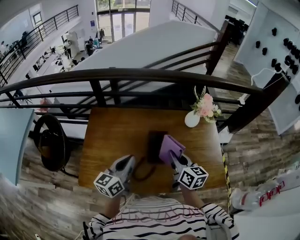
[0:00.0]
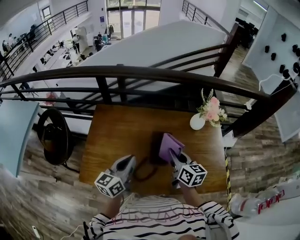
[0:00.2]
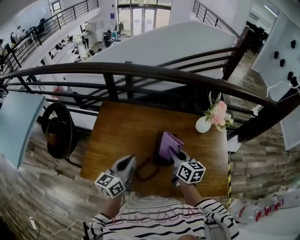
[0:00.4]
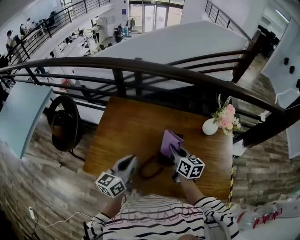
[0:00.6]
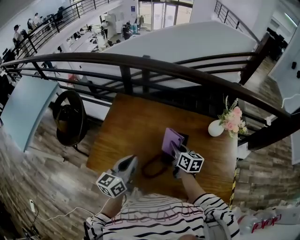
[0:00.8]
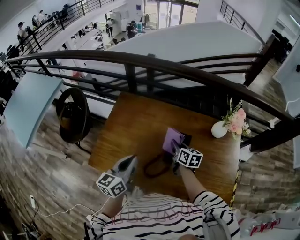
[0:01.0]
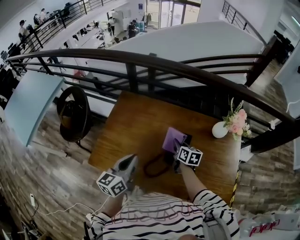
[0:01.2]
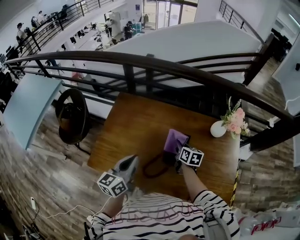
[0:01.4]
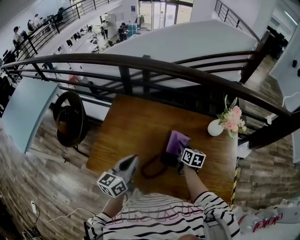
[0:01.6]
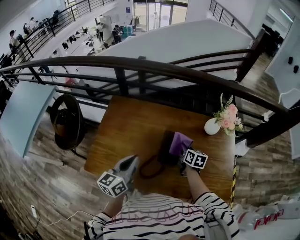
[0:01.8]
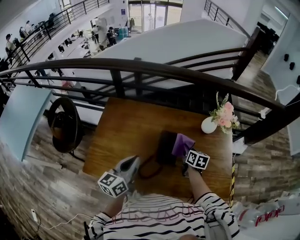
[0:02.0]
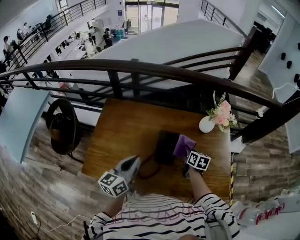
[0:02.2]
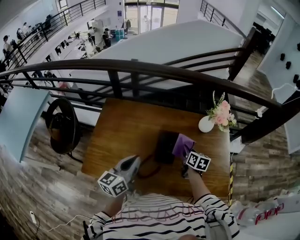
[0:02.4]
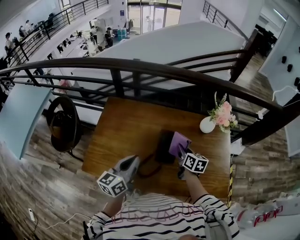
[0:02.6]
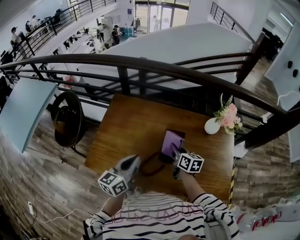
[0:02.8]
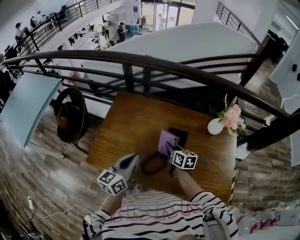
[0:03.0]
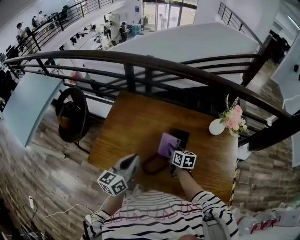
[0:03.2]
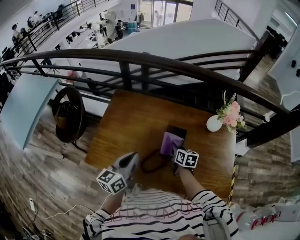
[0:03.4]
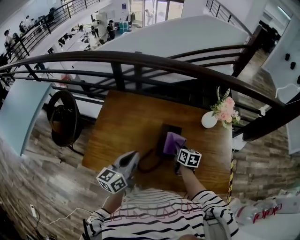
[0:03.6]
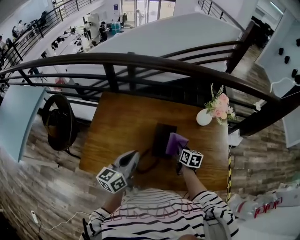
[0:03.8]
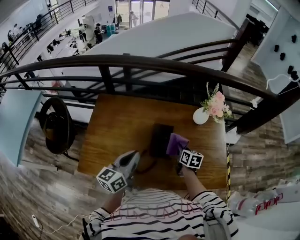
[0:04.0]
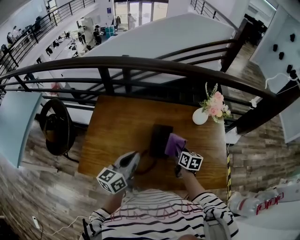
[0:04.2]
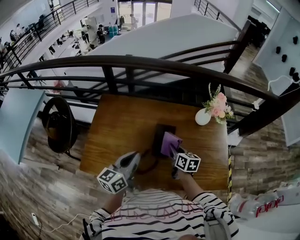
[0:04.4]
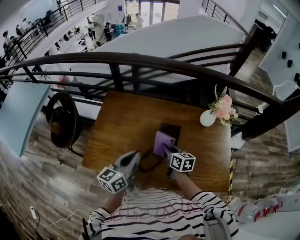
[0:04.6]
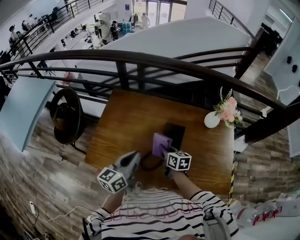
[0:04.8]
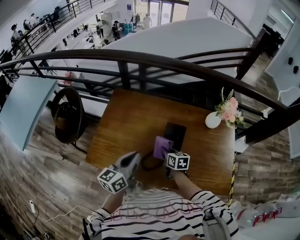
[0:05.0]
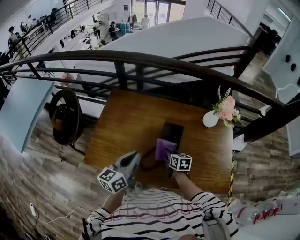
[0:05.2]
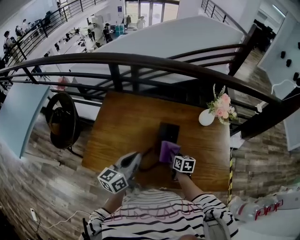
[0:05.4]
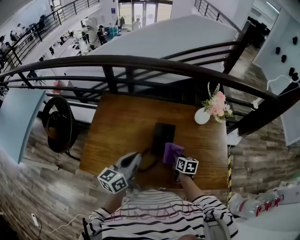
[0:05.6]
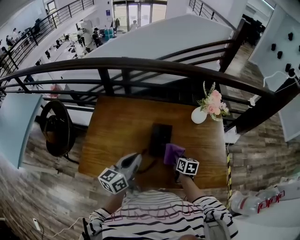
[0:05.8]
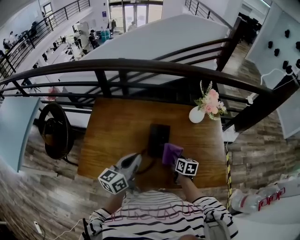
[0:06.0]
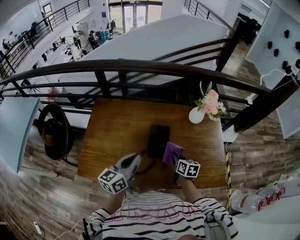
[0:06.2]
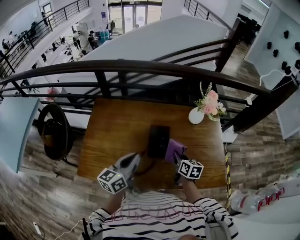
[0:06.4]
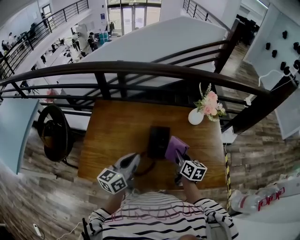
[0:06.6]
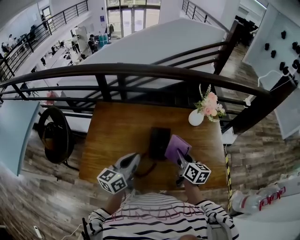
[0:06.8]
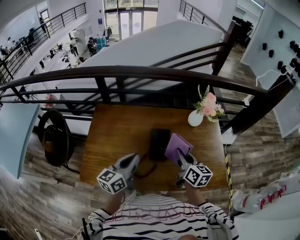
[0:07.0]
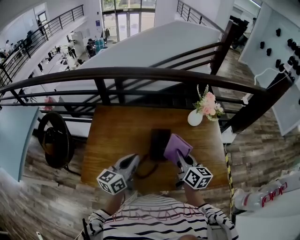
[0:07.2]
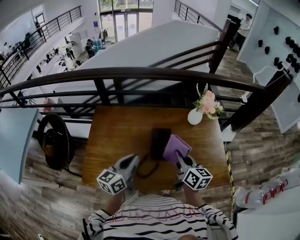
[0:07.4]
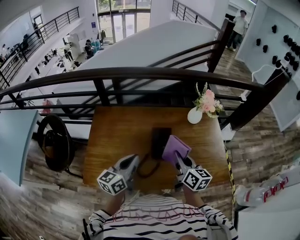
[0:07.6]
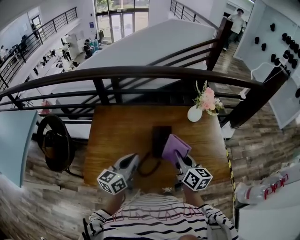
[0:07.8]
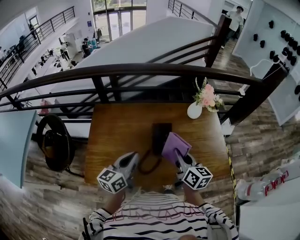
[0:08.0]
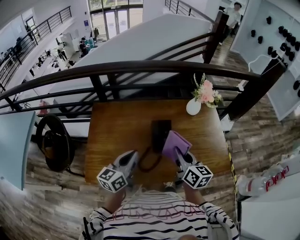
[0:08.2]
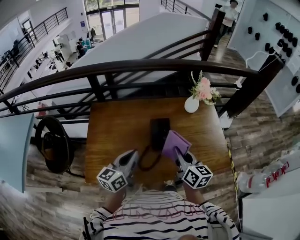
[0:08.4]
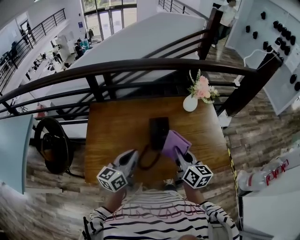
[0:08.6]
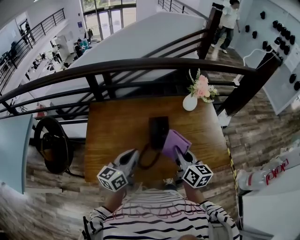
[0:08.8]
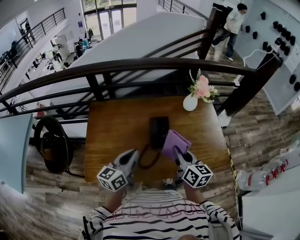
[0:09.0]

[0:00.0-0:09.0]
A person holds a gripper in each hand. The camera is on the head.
0:00.0 to 0:01.6: The right gripper heads downward and forward, covering about 20 cm, and swivels roughly 20 degrees.
0:01.6 to 0:03.0: The right gripper heads to the left and backward, covering roughly 10 cm.
0:03.0 to 0:04.4: The left gripper is displaced to the right by some 5 cm. Meanwhile the right gripper shifts some 10 cm to the right.
0:04.4 to 0:06.0: The right gripper travels downward and to the right by approximately 10 cm.
0:06.0 to 0:07.6: The left gripper moves approximately 5 cm, while the right gripper goes roughly 20 cm upward, and changes its angle by some 30 degrees.
0:07.6 to 0:09.0: The grippers move only a little.

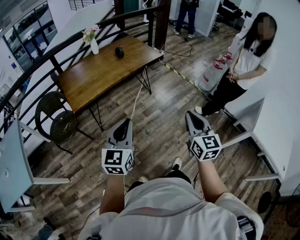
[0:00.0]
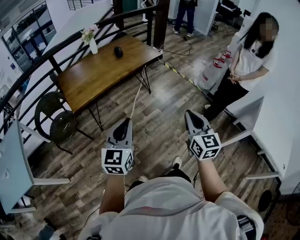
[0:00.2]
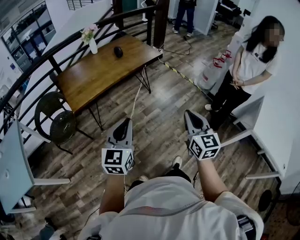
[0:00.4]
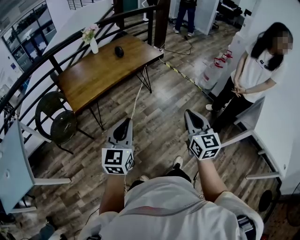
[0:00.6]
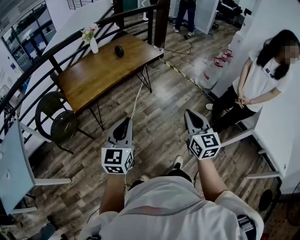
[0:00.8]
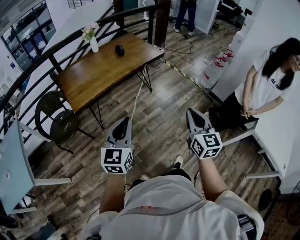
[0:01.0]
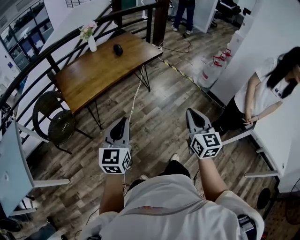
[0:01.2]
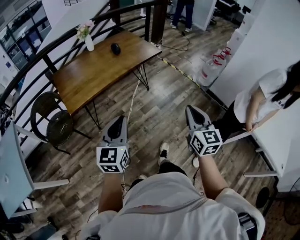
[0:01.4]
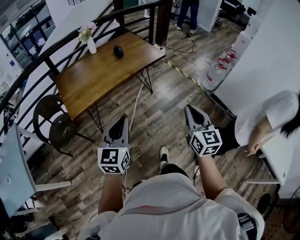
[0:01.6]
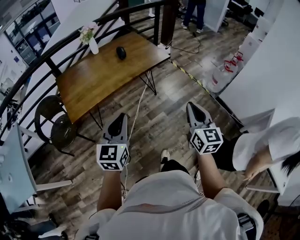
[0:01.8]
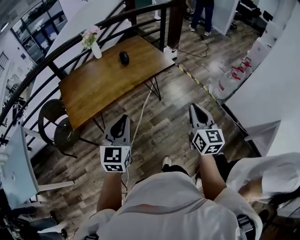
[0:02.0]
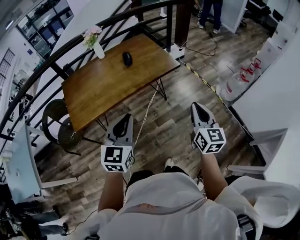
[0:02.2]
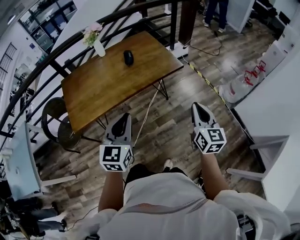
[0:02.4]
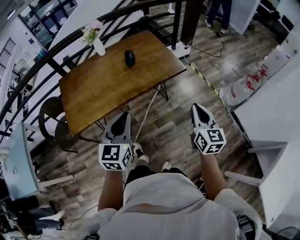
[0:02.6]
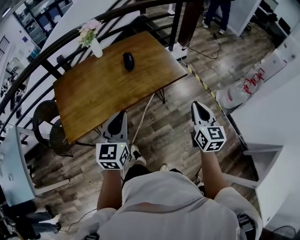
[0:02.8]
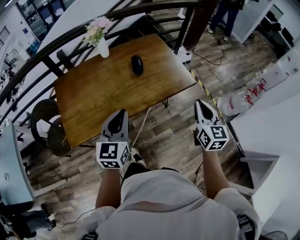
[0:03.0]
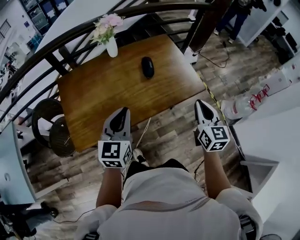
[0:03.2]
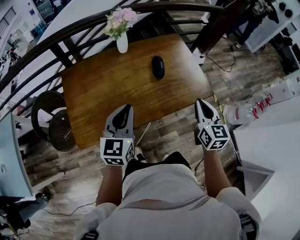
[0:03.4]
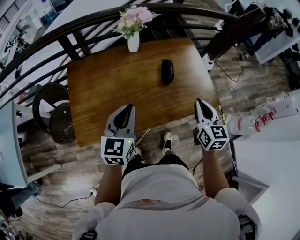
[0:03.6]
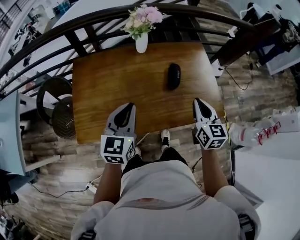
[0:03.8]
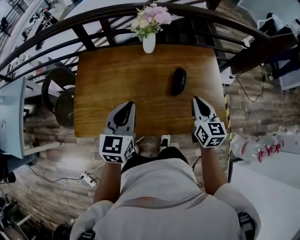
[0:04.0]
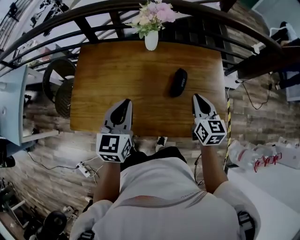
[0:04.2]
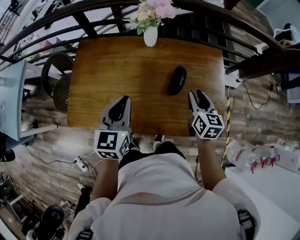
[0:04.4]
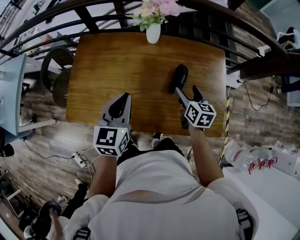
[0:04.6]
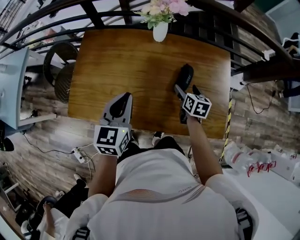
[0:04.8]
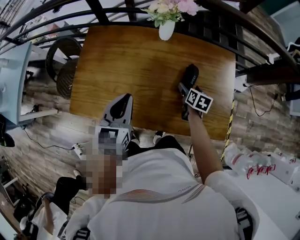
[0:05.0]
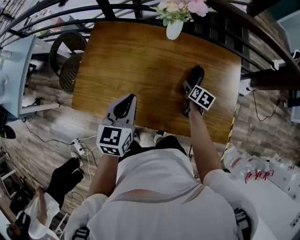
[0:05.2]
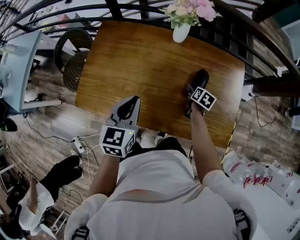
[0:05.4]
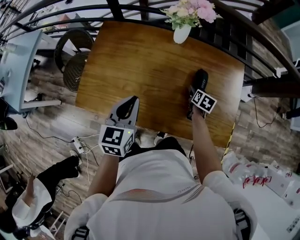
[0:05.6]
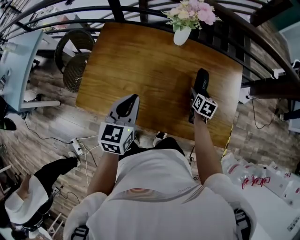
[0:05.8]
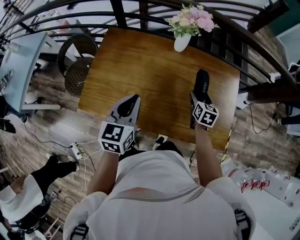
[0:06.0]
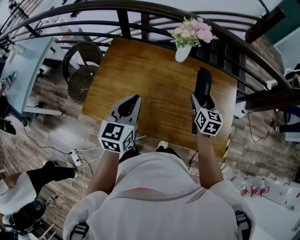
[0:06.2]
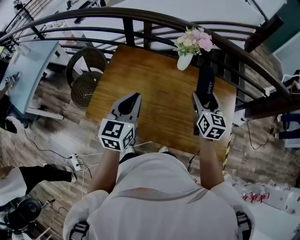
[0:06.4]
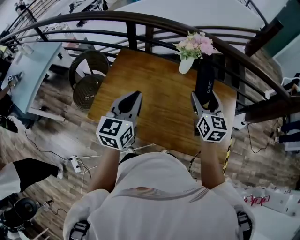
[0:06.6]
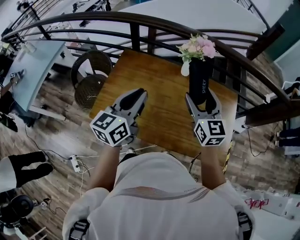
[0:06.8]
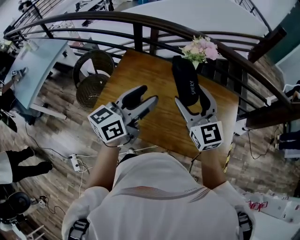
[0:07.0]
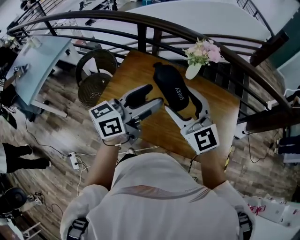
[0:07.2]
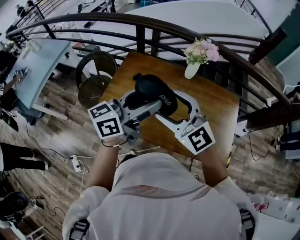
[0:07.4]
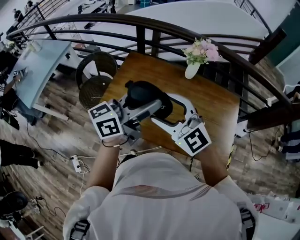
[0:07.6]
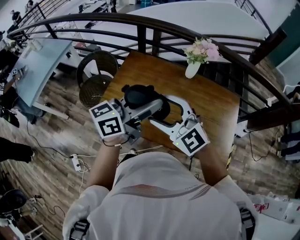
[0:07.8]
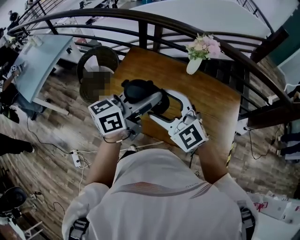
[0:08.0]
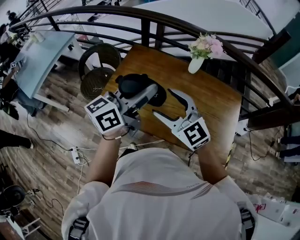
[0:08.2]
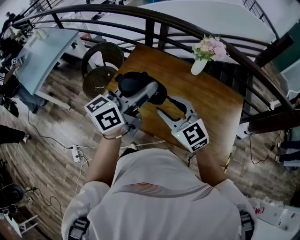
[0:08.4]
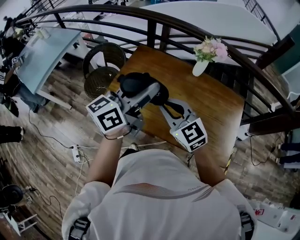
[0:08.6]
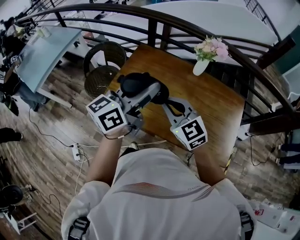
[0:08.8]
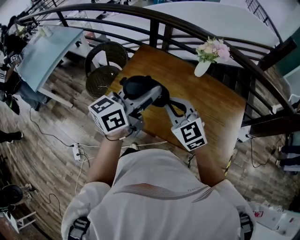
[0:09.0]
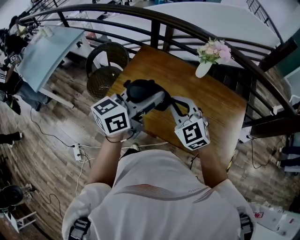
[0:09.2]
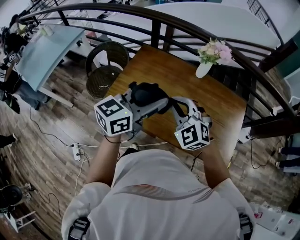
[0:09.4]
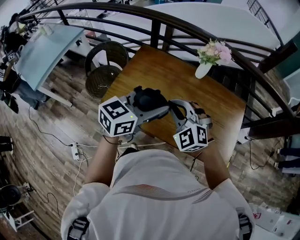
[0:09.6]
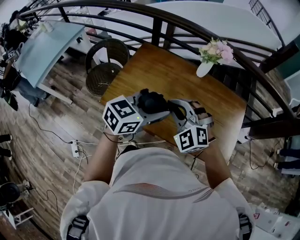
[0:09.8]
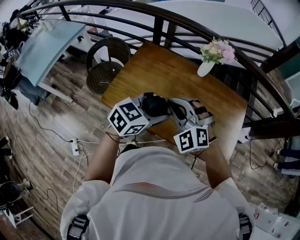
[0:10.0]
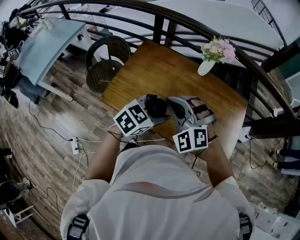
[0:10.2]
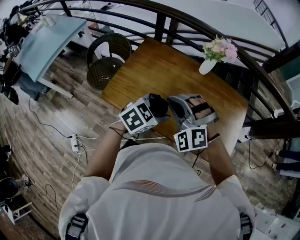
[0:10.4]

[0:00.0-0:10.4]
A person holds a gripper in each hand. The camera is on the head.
0:00.0 to 0:01.4: The two grippers go roughly 5 cm forward.
0:01.4 to 0:03.0: The two grippers travel together, forward, roughly 50 cm.
0:03.0 to 0:04.4: The right gripper changes place by some 40 cm, and rotates approximately 30 degrees. The left gripper changes place by about 25 cm, and changes its angle by approximately 30 degrees.
0:04.4 to 0:06.0: The left gripper is displaced to the left by some 5 cm. The right gripper moves downward, some 10 cm, and opens.
0:06.0 to 0:07.4: The right gripper goes roughly 40 cm upward, to the left and backward, and points its fingers roughly 30 degrees further upward. Meanwhile the left gripper heads upward, covering about 15 cm, tips its fingers upward by some 30 degrees, and opens.
0:07.4 to 0:09.0: The right gripper is displaced downward by some 5 cm, and closes its fingers.
0:09.0 to 0:10.4: The left gripper goes some 20 cm downward and to the right, and angles its fingers downward, by about 40 degrees. The right gripper rolls counterclockwise, seen from behind, by some 50 degrees.

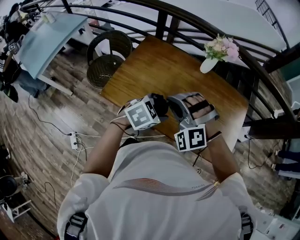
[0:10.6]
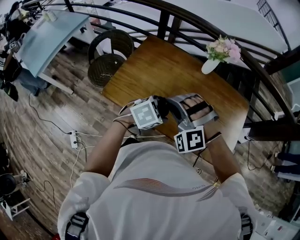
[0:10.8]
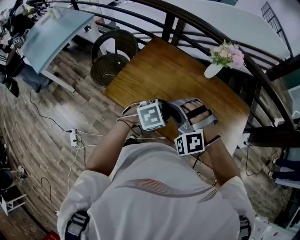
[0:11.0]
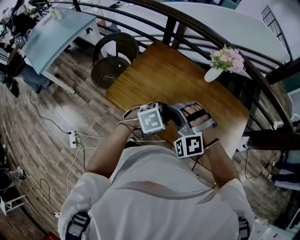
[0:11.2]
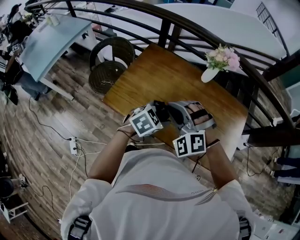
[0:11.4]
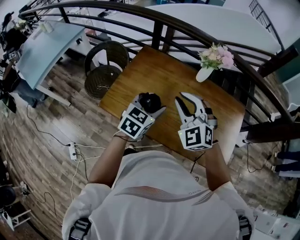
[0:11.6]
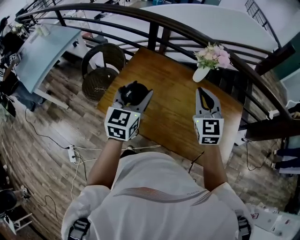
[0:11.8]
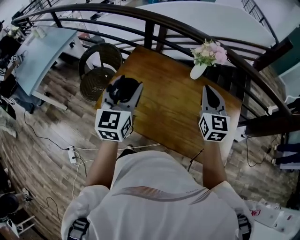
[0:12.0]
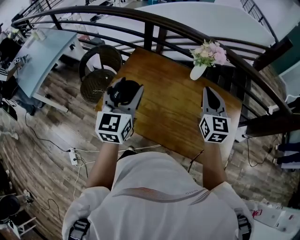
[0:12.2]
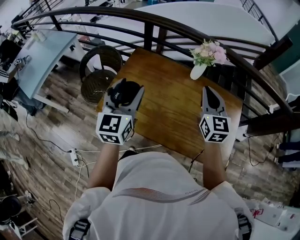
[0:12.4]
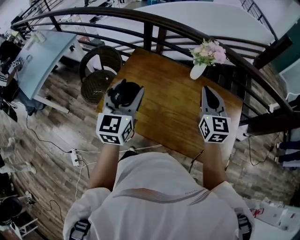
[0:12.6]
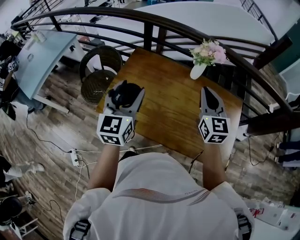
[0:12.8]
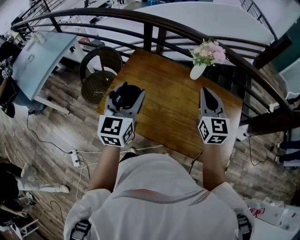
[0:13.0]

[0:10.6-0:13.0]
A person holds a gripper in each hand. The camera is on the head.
0:10.6 to 0:11.8: The left gripper moves upward, to the left and forward, approximately 20 cm, and angles its fingers upward, by some 40 degrees. The right gripper shifts about 15 cm forward, to the right and upward, and rolls clockwise, seen from behind, by some 60 degrees.
0:11.8 to 0:13.0: The grippers make only small movements.

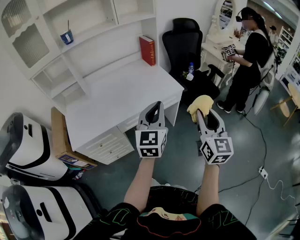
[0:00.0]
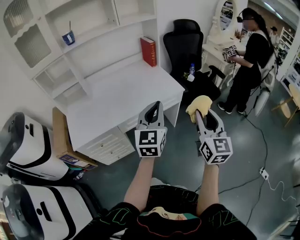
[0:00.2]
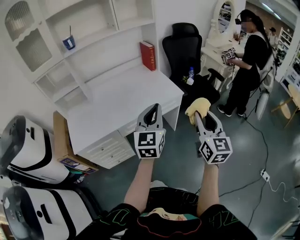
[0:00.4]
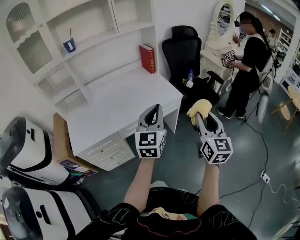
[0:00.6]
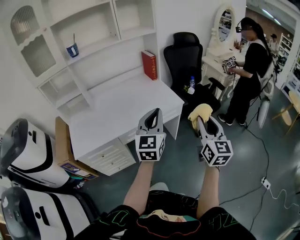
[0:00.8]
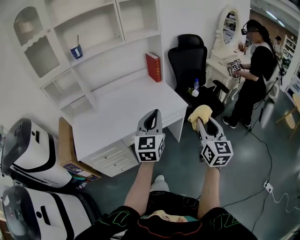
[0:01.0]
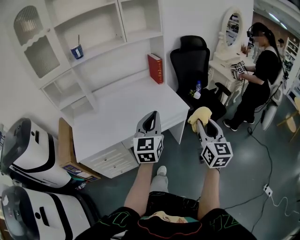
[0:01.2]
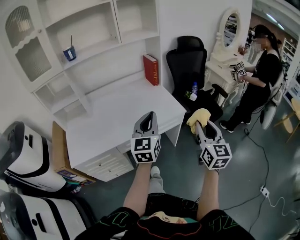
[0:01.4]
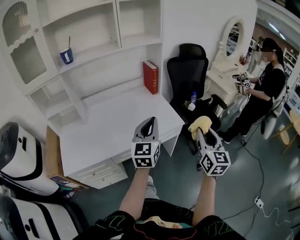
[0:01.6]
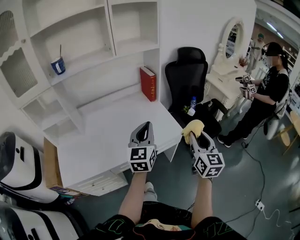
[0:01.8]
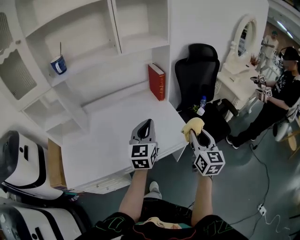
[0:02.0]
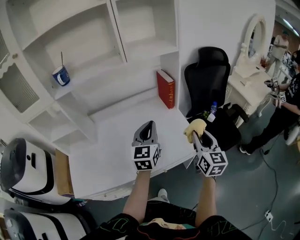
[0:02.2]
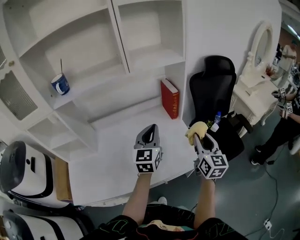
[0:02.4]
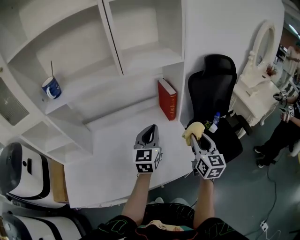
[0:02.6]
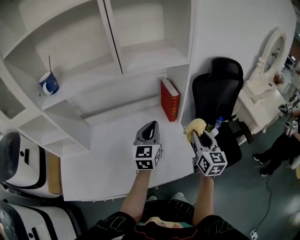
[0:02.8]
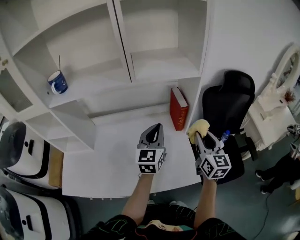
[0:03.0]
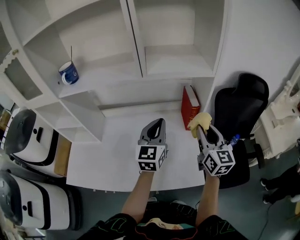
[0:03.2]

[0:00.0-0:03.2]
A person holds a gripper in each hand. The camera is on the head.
0:00.0 to 0:01.6: The two grippers go about 15 cm forward.
0:01.6 to 0:03.2: The left gripper shifts by some 35 cm, and swivels some 20 degrees; the right gripper ends up roughly 50 cm from where it was, and turns by roughly 30 degrees.
